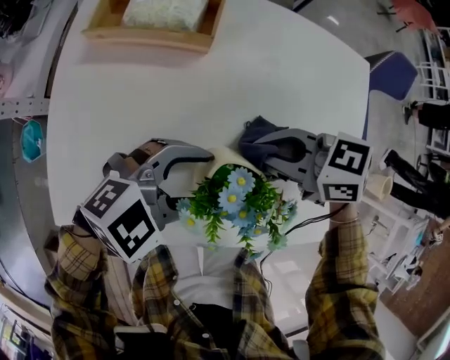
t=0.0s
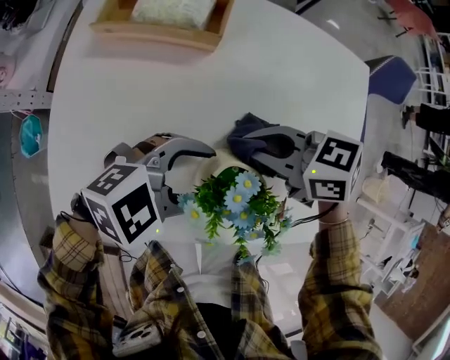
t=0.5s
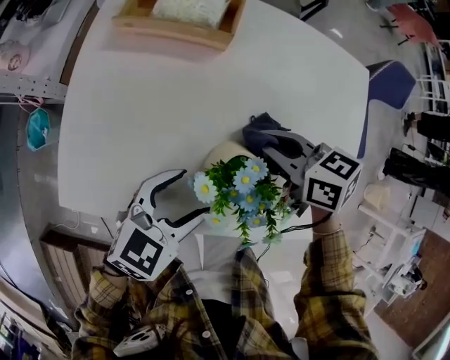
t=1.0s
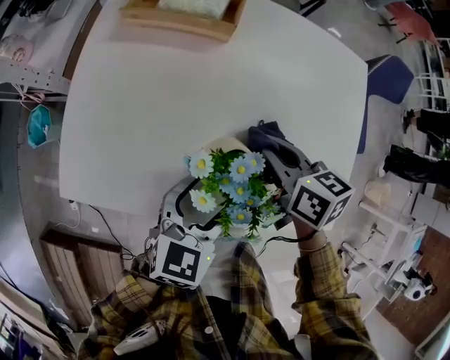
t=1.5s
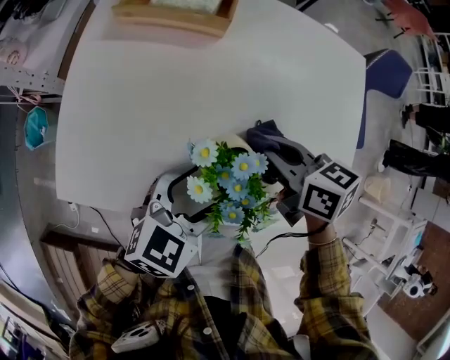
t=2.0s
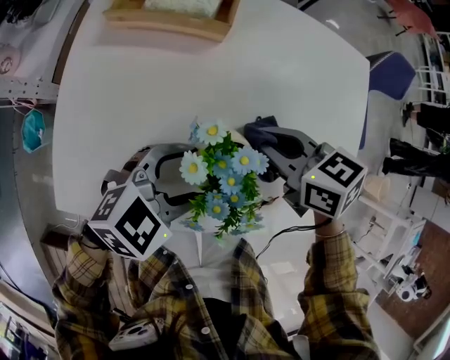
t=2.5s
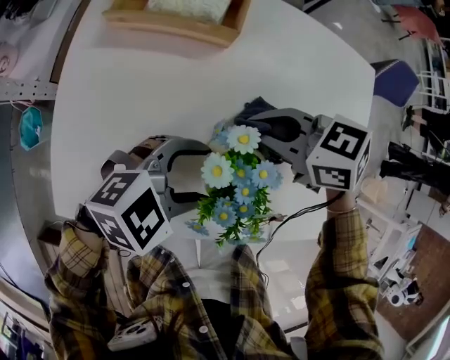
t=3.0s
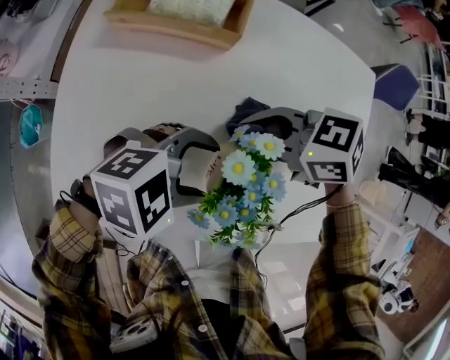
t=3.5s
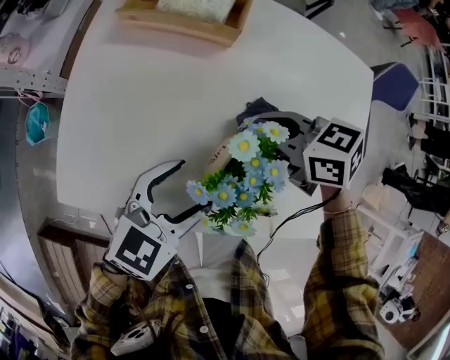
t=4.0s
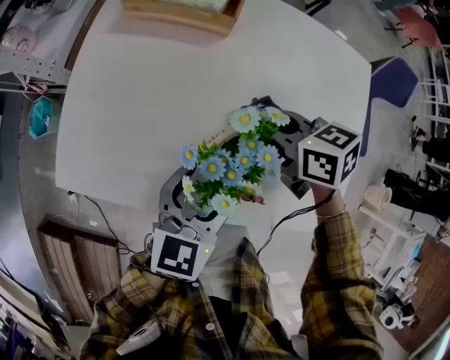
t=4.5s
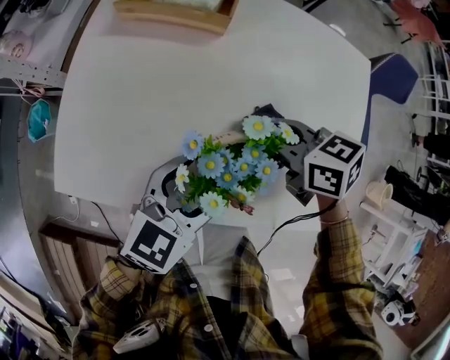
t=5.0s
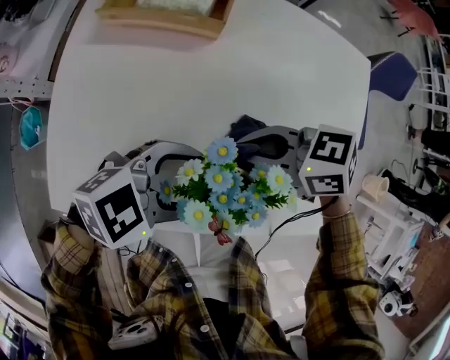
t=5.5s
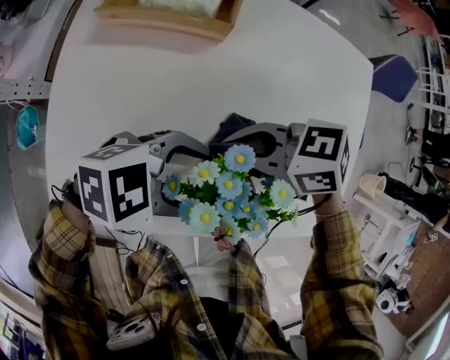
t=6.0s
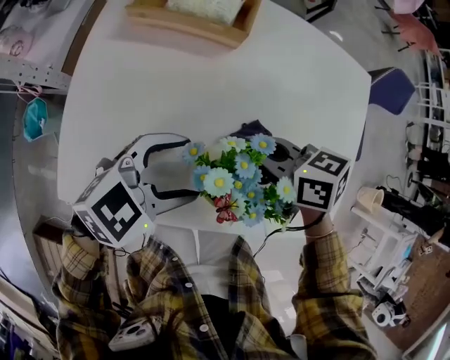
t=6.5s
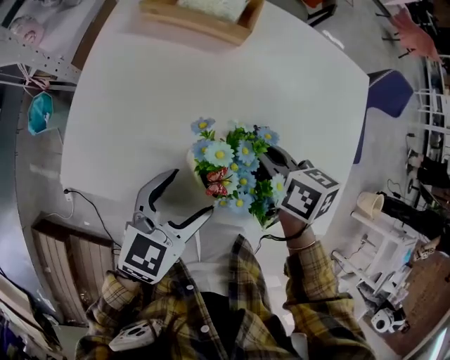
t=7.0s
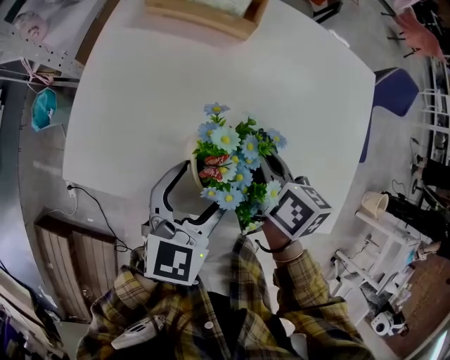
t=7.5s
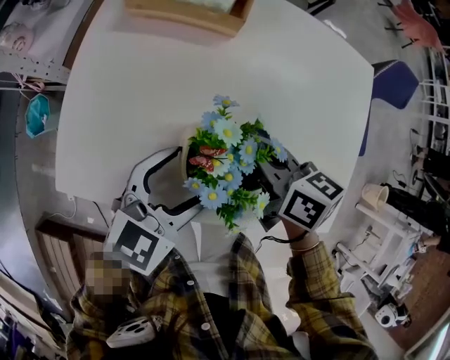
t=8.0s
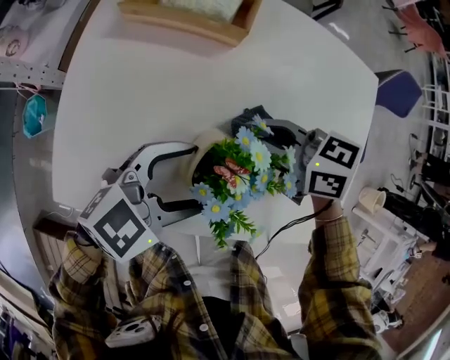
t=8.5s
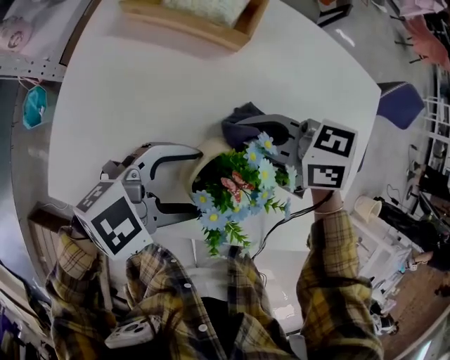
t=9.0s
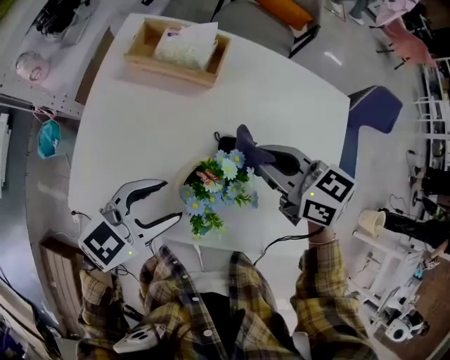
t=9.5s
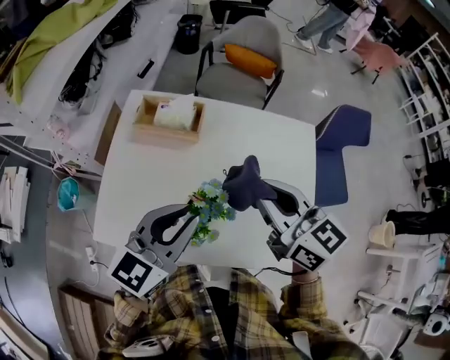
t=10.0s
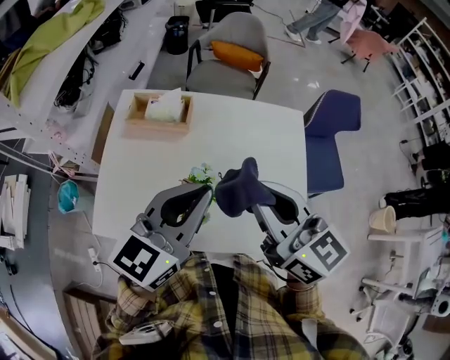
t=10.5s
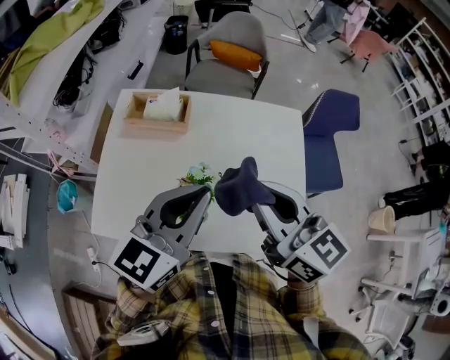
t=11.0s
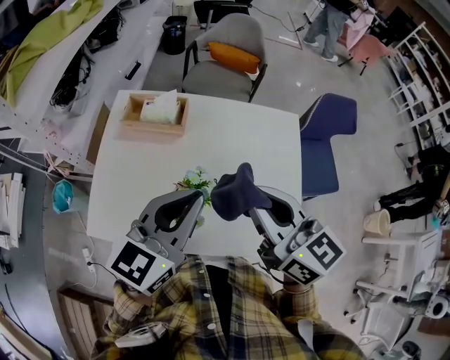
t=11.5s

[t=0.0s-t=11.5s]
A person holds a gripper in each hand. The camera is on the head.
t=0.0s to t=2.0s: The left gripper changes place by about 5 cm, and swivels roughly 40 degrees, while the right gripper changes its angle by approximately 30 degrees.
t=2.0s to t=4.0s: The left gripper shifts by about 5 cm. The right gripper moves some 5 cm, and swivels roughly 20 degrees.
t=4.0s to t=6.0s: The left gripper changes its angle by approximately 50 degrees; the right gripper changes place by some 5 cm.
t=6.0s to t=7.5s: The left gripper changes its angle by about 70 degrees, while the right gripper rotates approximately 60 degrees.
t=7.5s to t=9.5s: The right gripper travels upward by approximately 10 cm, and turns by roughly 40 degrees. The left gripper shifts by roughly 5 cm, and swivels some 20 degrees.
t=9.5s to t=11.5s: The right gripper shifts approximately 20 cm upward and backward, and changes its angle by approximately 30 degrees, while the left gripper heads upward and to the right, covering about 25 cm, rotates approximately 20 degrees, and closes.

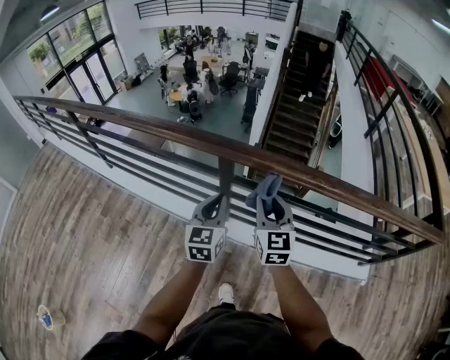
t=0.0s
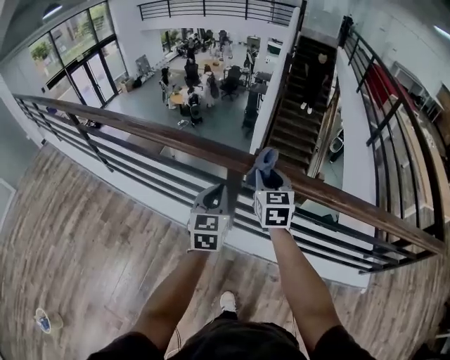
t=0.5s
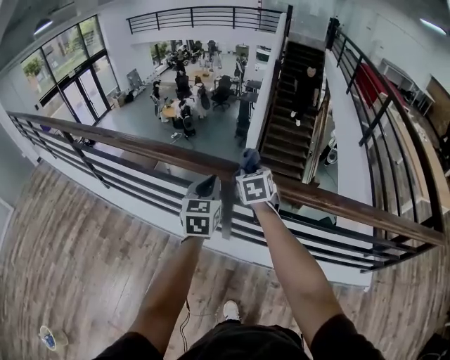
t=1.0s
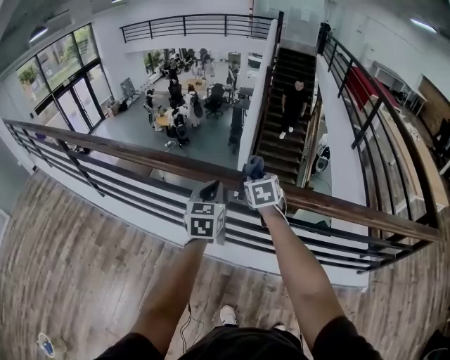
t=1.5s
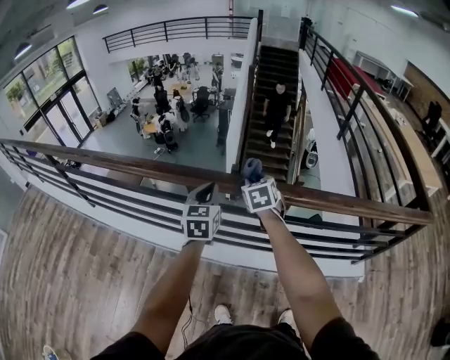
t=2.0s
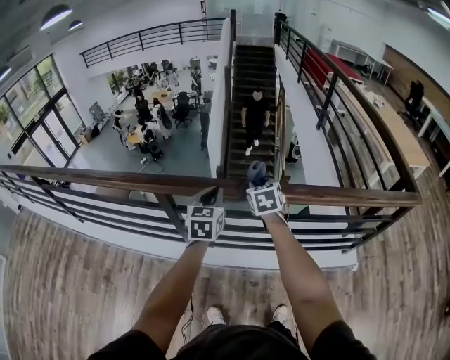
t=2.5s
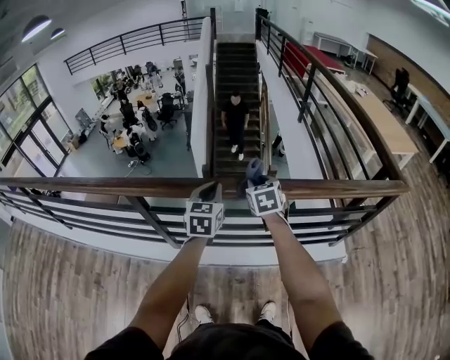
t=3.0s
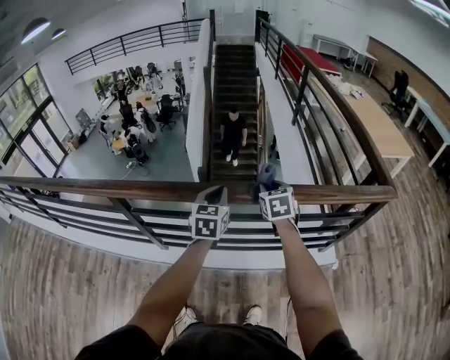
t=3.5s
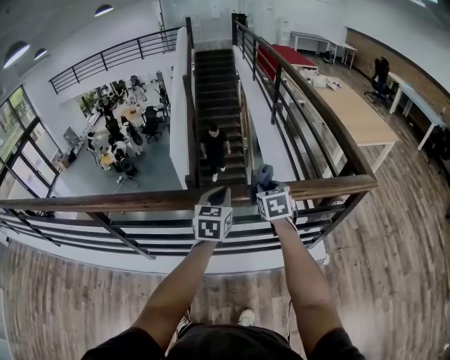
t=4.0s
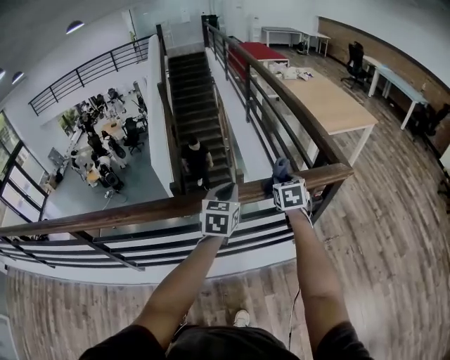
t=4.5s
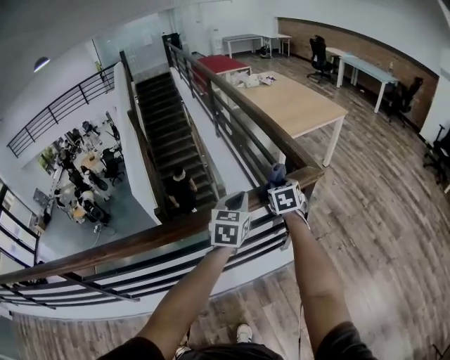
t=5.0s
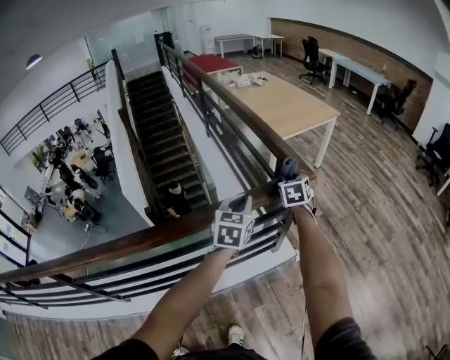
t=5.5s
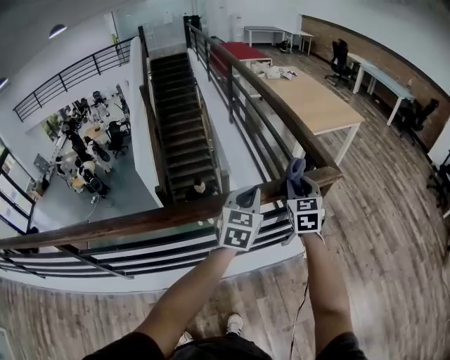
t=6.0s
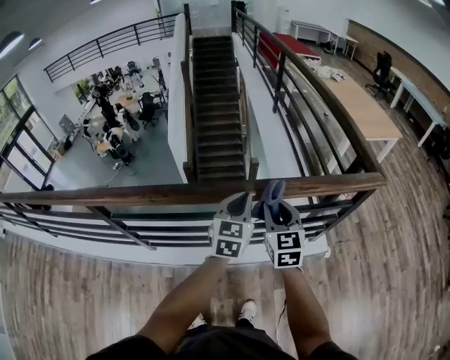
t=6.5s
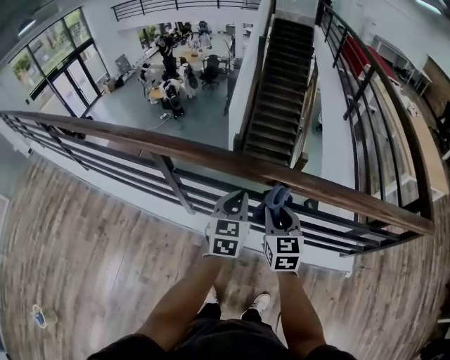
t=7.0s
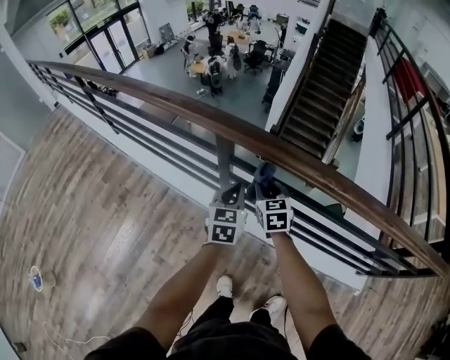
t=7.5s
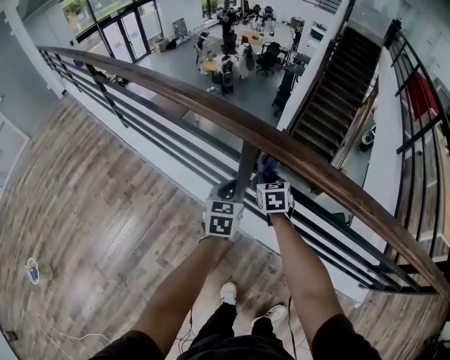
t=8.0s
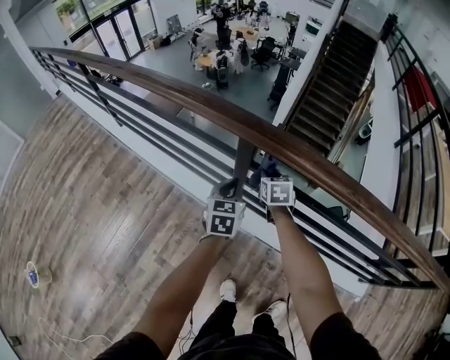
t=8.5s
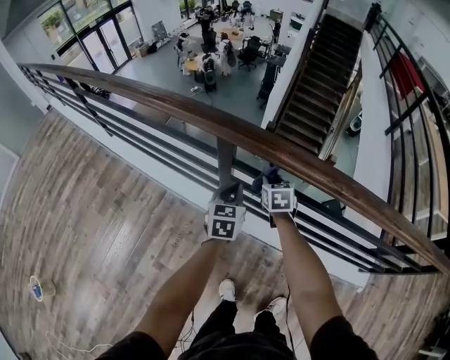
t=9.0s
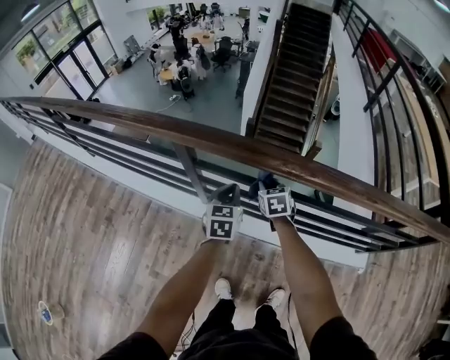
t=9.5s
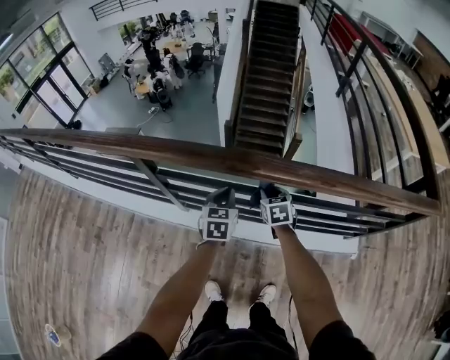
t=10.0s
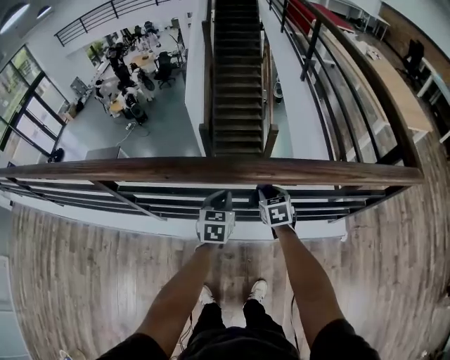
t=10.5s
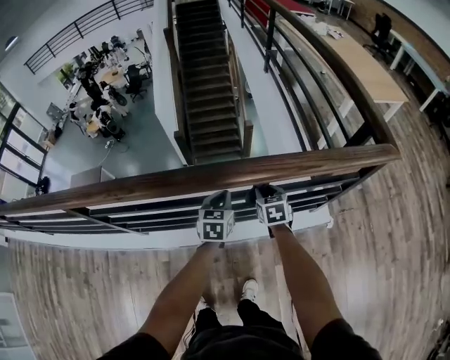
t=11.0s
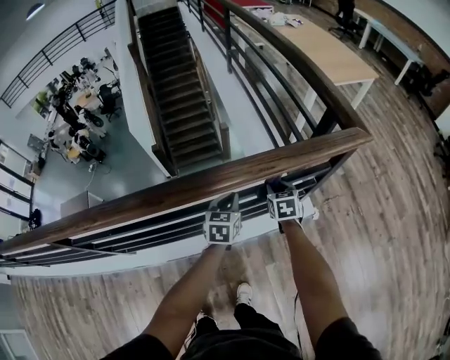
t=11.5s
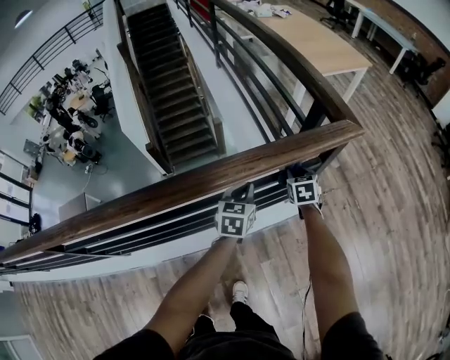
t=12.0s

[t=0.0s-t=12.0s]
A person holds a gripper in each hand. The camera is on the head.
t=0.0s to t=2.0s: The right gripper goes roughly 20 cm forward and to the right, and changes its angle by approximately 30 degrees; the left gripper heads forward, to the right and upward, covering roughly 15 cm.
t=2.0s to t=4.0s: The two grippers travel together, to the right, about 60 cm.
t=4.0s to t=6.0s: The left gripper shifts by about 30 cm, and rotates about 20 degrees. Meanwhile the right gripper changes its angle by roughly 20 degrees.
t=6.0s to t=8.0s: The pair of grippers is taken roughly 1 m. The left gripper rotates some 60 degrees. Meanwhile the right gripper rotates roughly 50 degrees.
t=8.0s to t=10.0s: The grippers both shift to the right by about 40 cm. The left gripper swivels roughly 20 degrees.
t=10.0s to t=12.0s: The pair of grippers is taken roughly 70 cm. The right gripper turns by roughly 30 degrees; the left gripper rotates about 40 degrees.

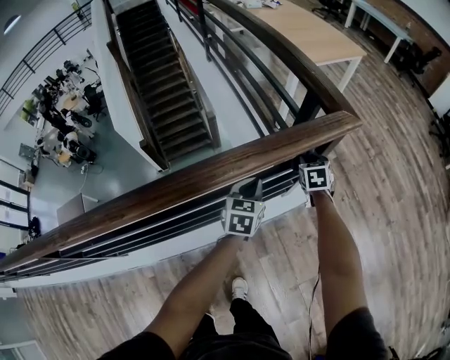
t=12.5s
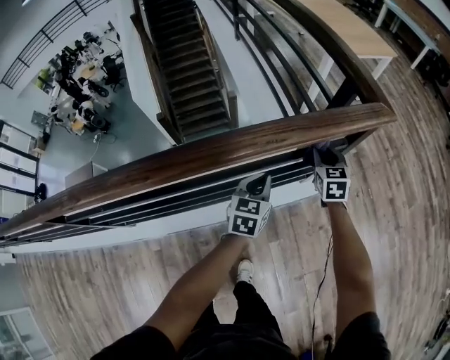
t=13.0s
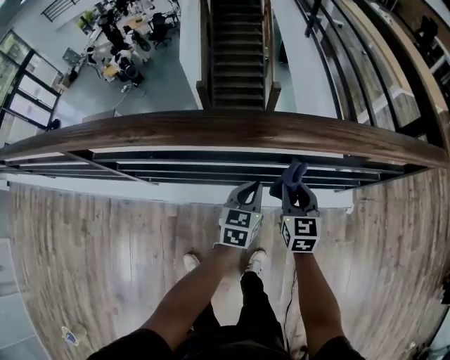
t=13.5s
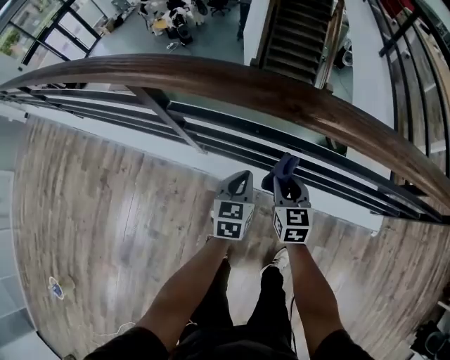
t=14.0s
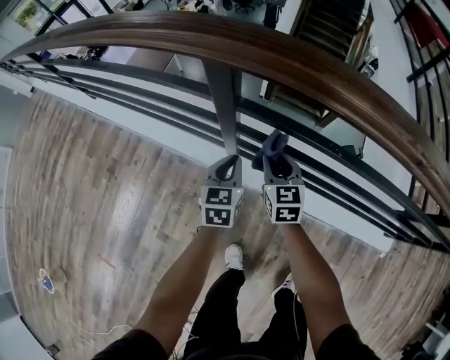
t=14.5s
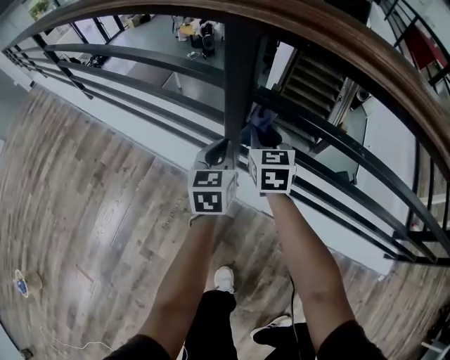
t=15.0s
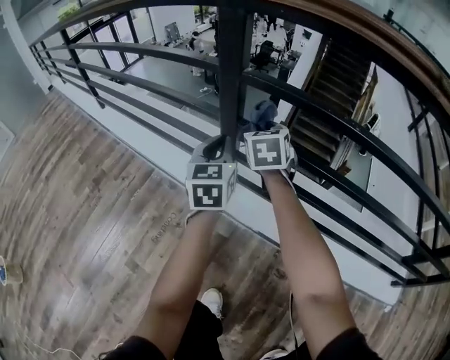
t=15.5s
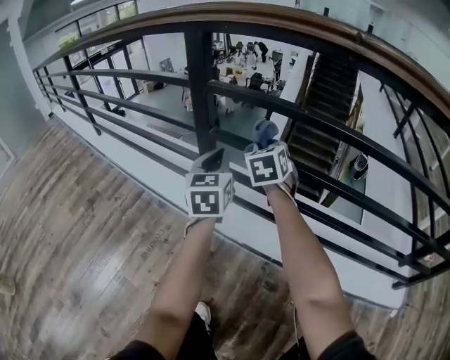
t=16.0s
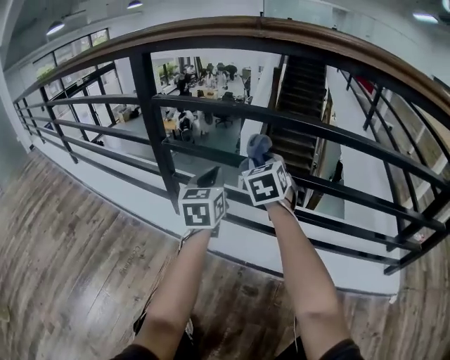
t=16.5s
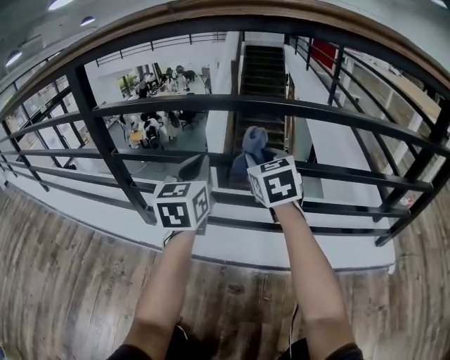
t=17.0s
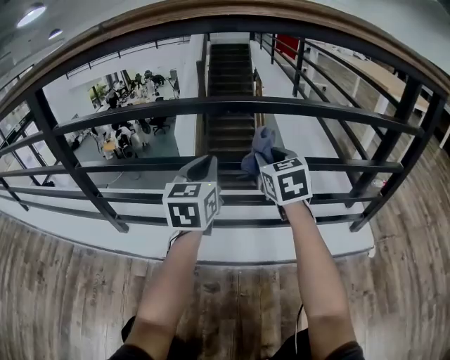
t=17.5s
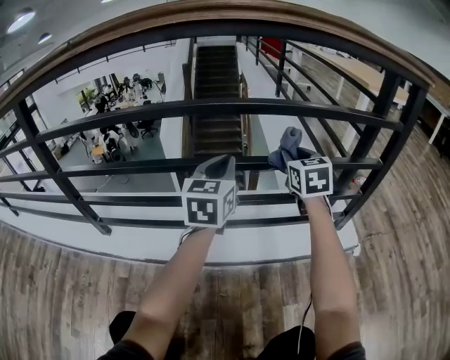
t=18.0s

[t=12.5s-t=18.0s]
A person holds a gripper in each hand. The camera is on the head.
t=12.5s to t=14.5s: Both grippers are carried roughly 1 m. The right gripper turns by about 60 degrees. The left gripper swivels about 50 degrees.
t=14.5s to t=16.0s: The left gripper travels to the right and backward by about 10 cm, and swivels some 20 degrees; the right gripper heads to the right and downward, covering roughly 10 cm, and rotates some 20 degrees.
t=16.0s to t=18.0s: The two grippers travel together, about 60 cm. The left gripper changes its angle by roughly 40 degrees. The right gripper turns by about 30 degrees.
